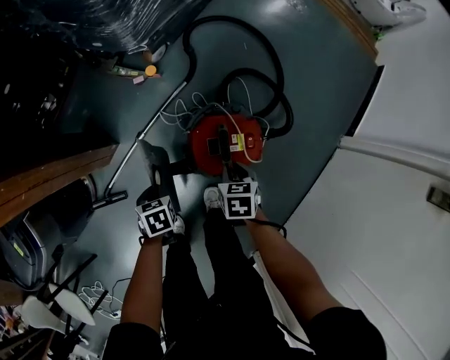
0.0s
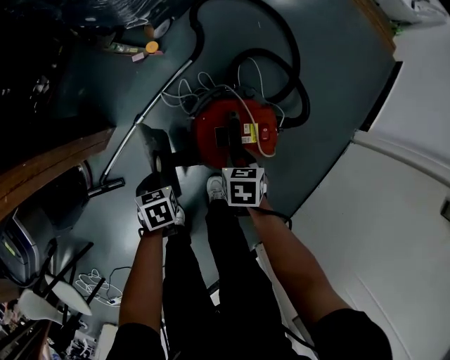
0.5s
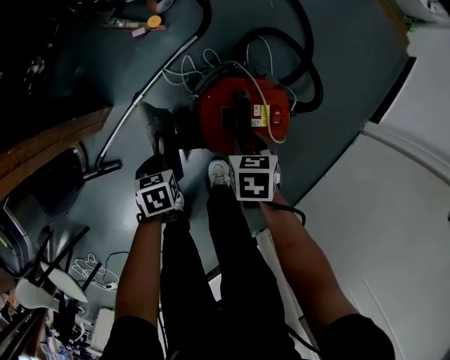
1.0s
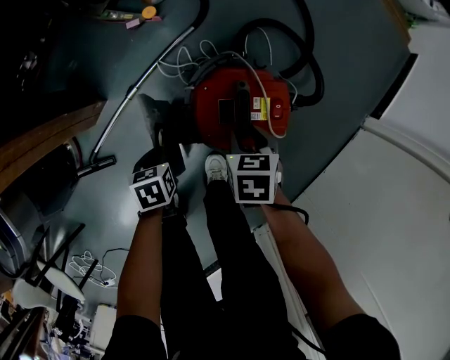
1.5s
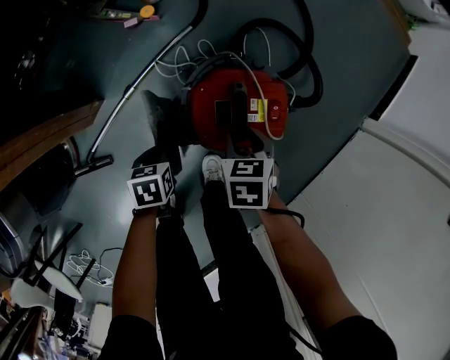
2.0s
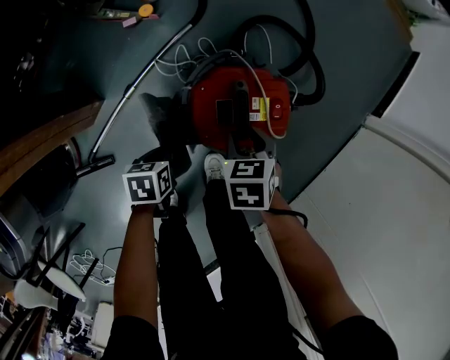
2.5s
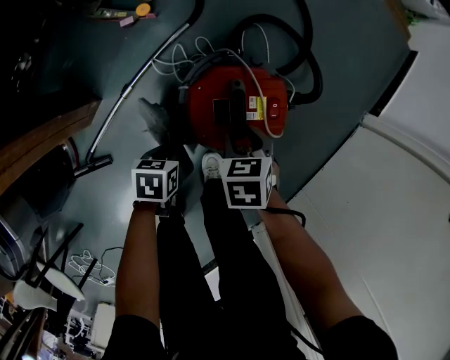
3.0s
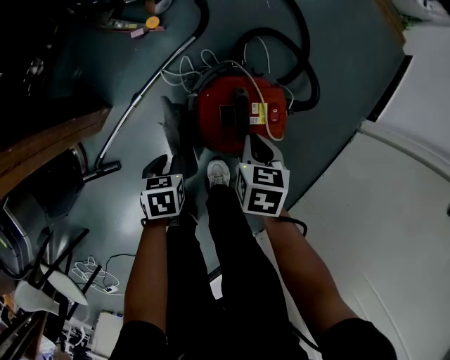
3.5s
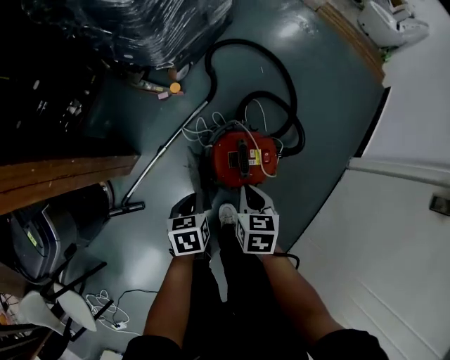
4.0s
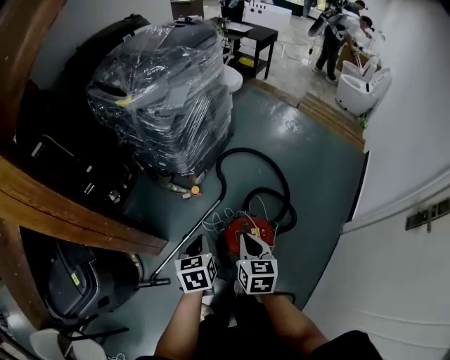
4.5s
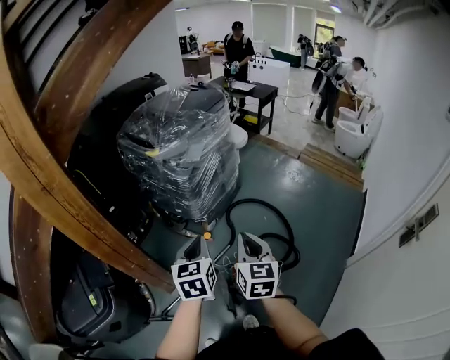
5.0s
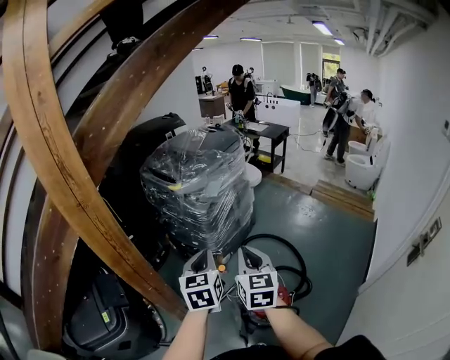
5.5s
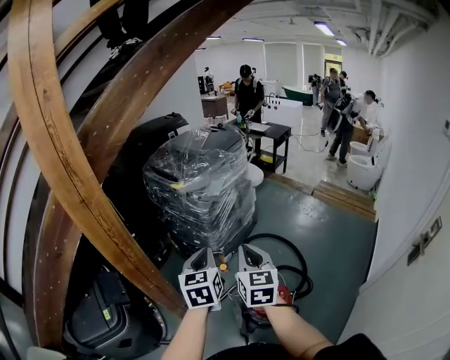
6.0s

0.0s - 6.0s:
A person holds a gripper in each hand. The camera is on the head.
0.0s - 2.0s: The left gripper goes roughly 10 cm downward; the right gripper is displaced downward by approximately 5 cm, and opens its fingers.
2.0s - 4.0s: The two grippers go some 20 cm upward. The left gripper opens, then closes once more. Meanwhile the right gripper closes.
4.0s - 6.0s: Both grippers travel together upward, approximately 50 cm. The right gripper tips its fingers upward by some 40 degrees. Meanwhile the left gripper tilts its fingers roughly 40 degrees upward.

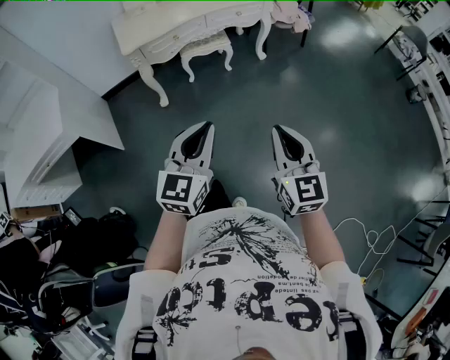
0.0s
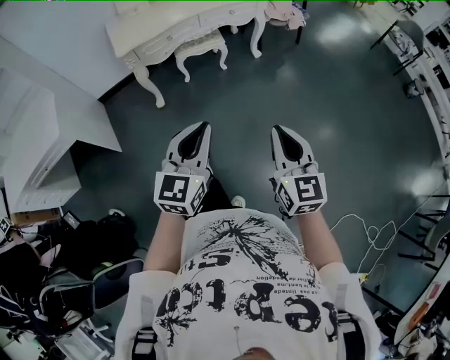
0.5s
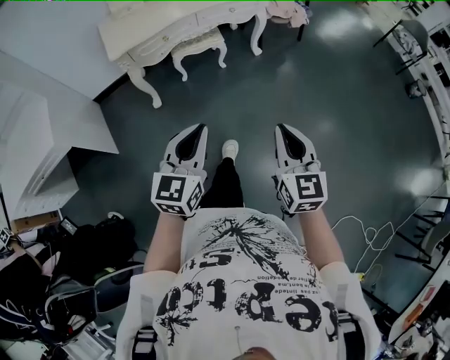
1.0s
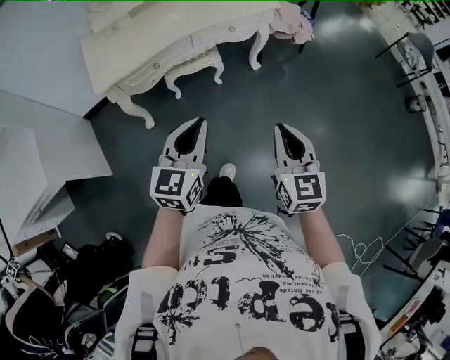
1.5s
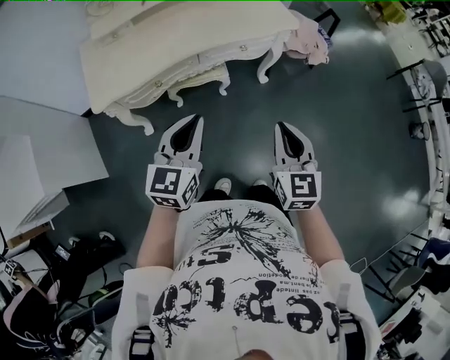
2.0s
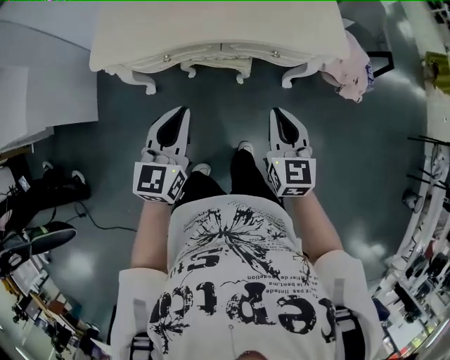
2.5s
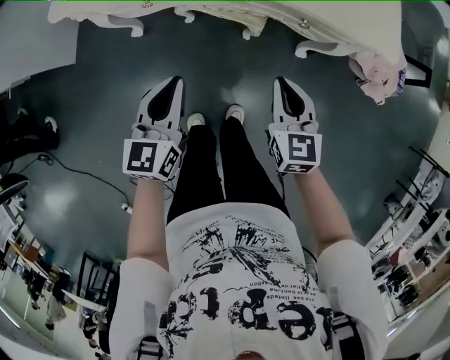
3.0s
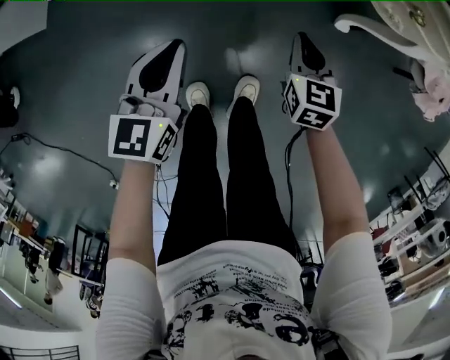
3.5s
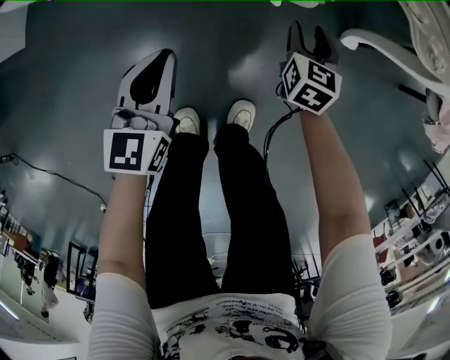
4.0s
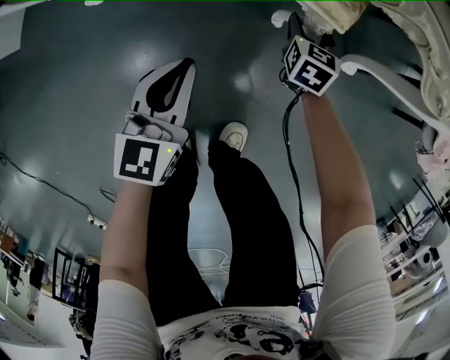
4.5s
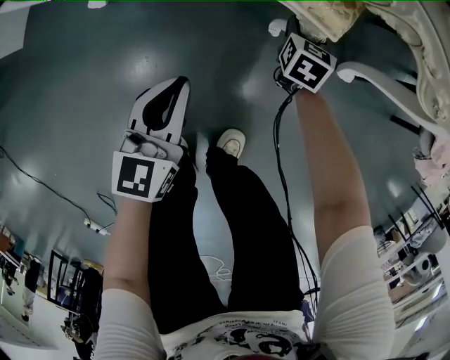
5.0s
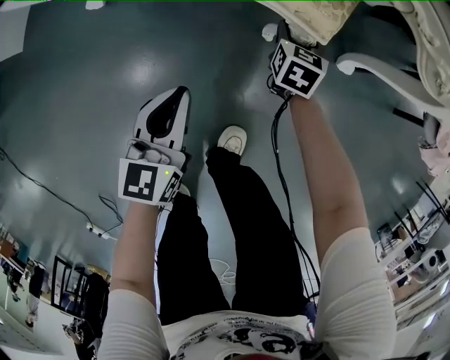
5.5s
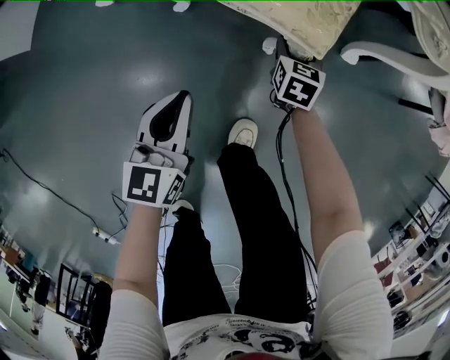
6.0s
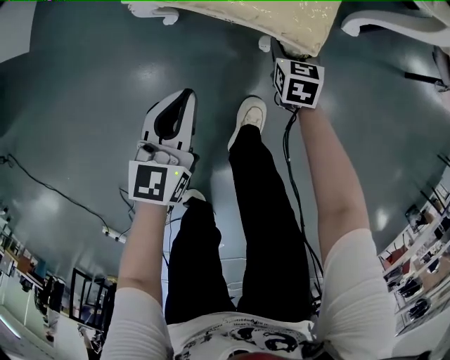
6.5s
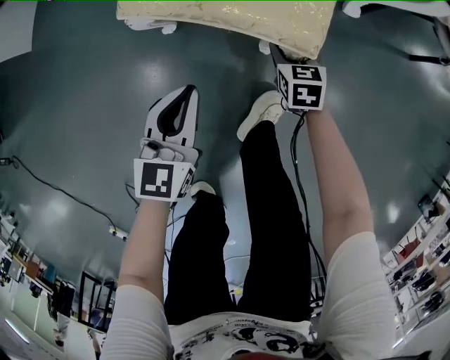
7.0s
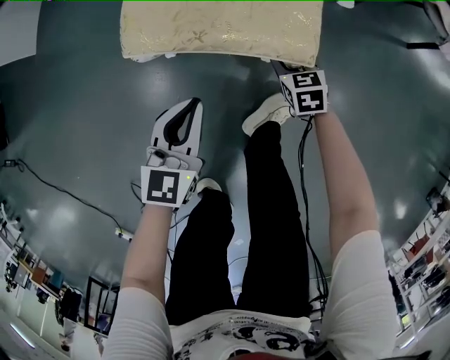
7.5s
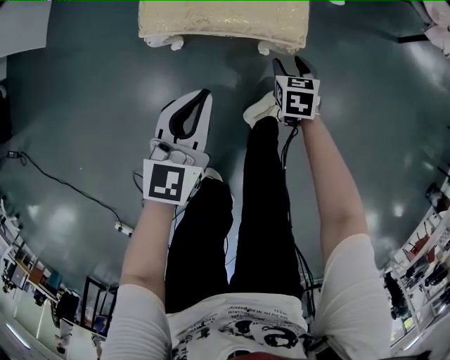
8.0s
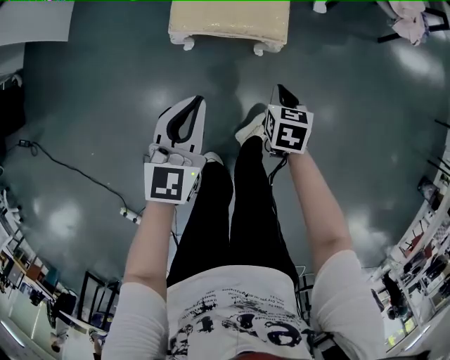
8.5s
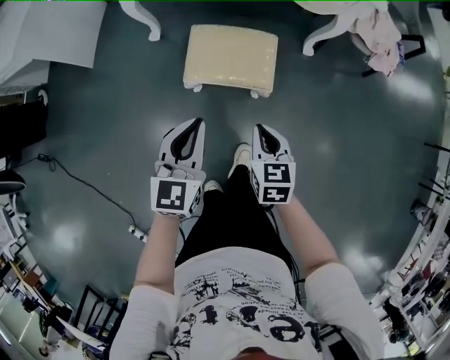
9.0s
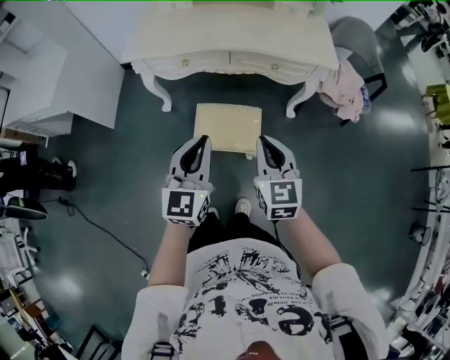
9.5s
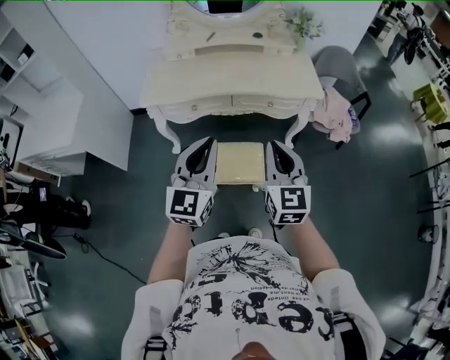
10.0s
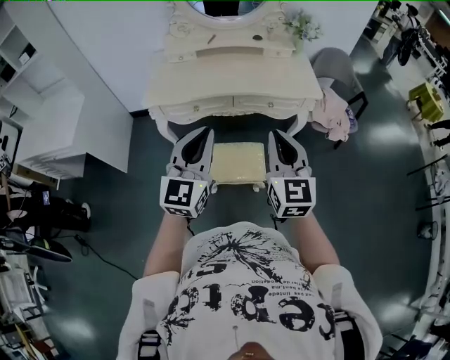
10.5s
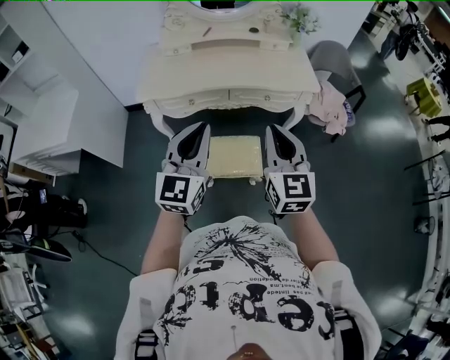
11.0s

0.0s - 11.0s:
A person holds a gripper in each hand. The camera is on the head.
0.0s - 2.0s: The pair of grippers is taken forward, roughly 40 cm.
2.0s - 3.5s: Both grippers travel together downward, roughly 50 cm. The right gripper changes its angle by approximately 40 degrees; the left gripper swivels approximately 40 degrees.
3.5s - 5.5s: The left gripper moves downward, roughly 15 cm. The right gripper moves downward and forward, roughly 25 cm, and opens its fingers.
5.5s - 7.5s: The grippers both shift backward by about 30 cm. The right gripper changes its angle by roughly 20 degrees.
7.5s - 9.0s: Both grippers travel together upward, approximately 40 cm. The right gripper closes.
9.0s - 11.0s: The grippers both shift upward by some 40 cm. The right gripper tilts its fingers roughly 40 degrees upward, while the left gripper changes its angle by approximately 20 degrees.

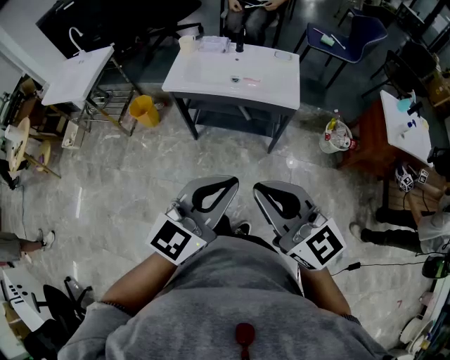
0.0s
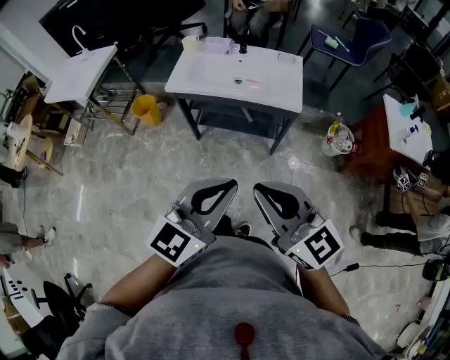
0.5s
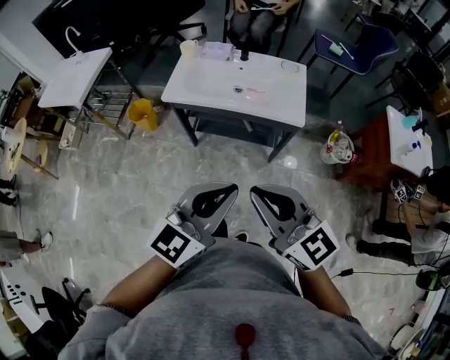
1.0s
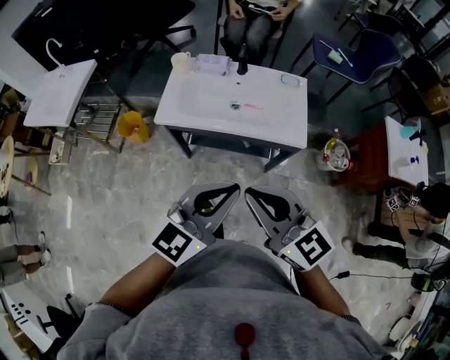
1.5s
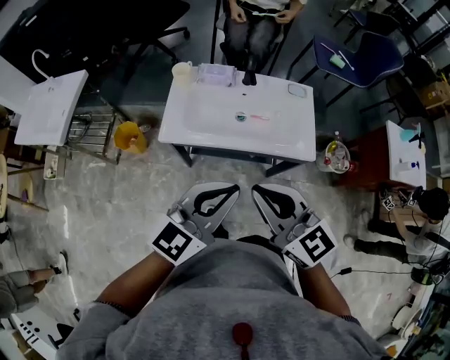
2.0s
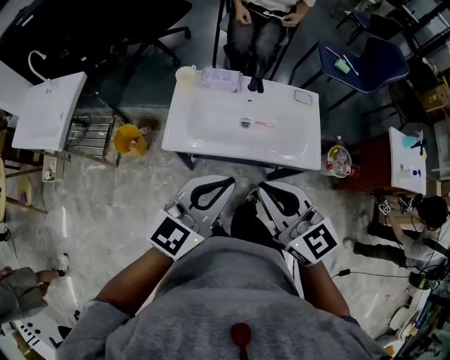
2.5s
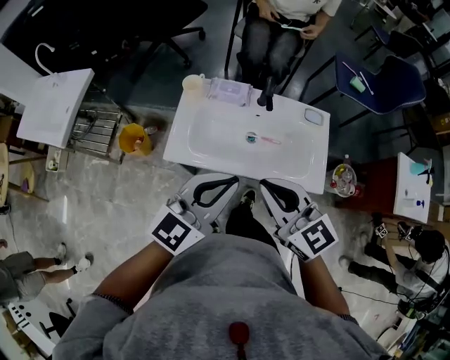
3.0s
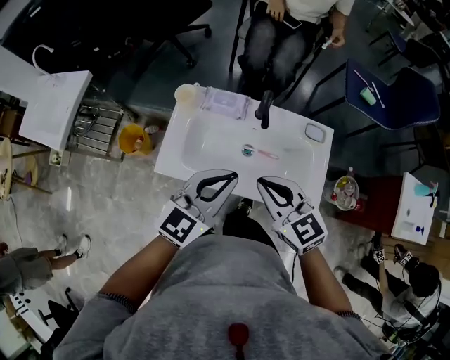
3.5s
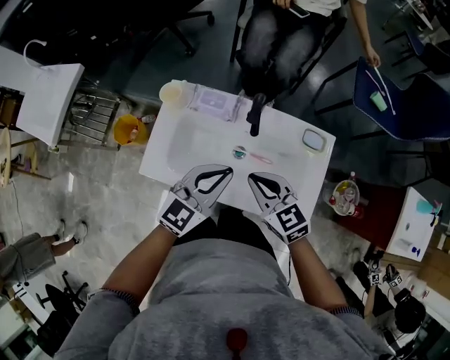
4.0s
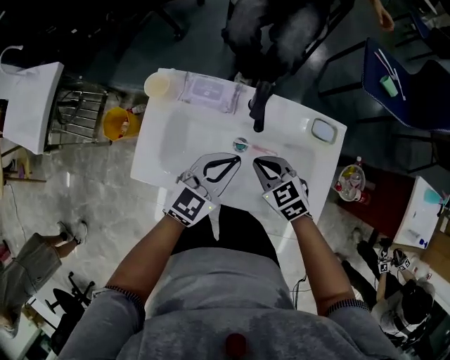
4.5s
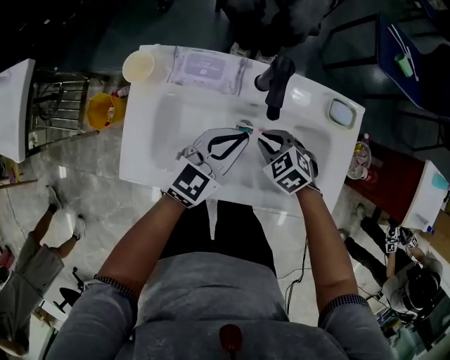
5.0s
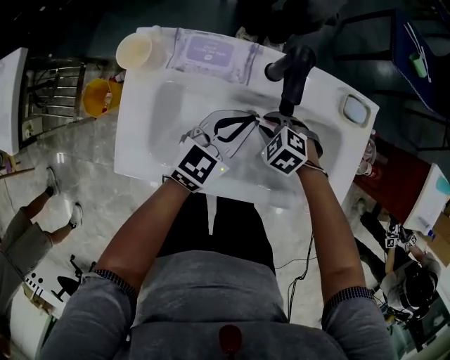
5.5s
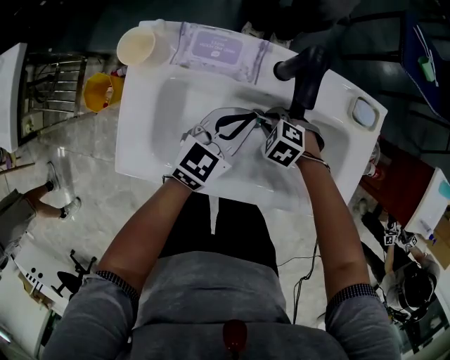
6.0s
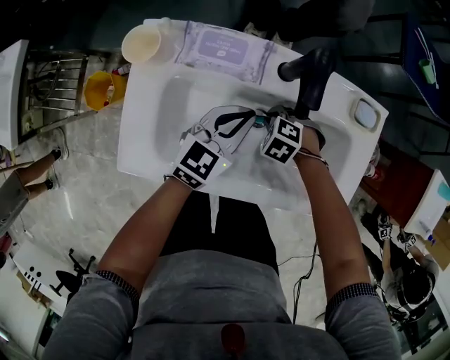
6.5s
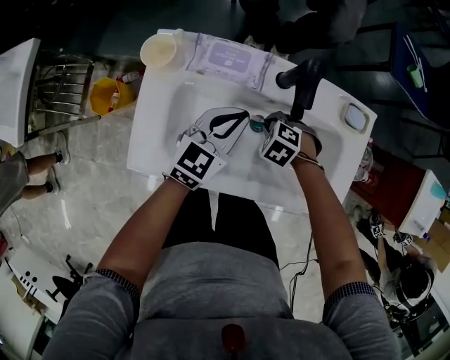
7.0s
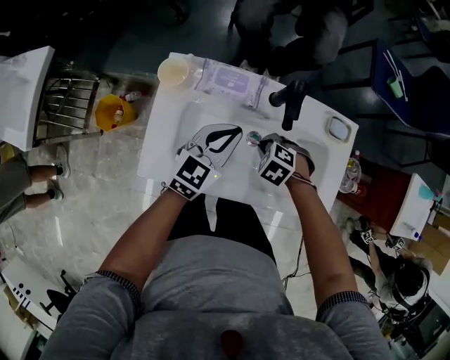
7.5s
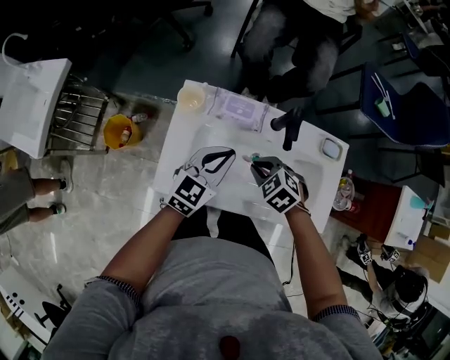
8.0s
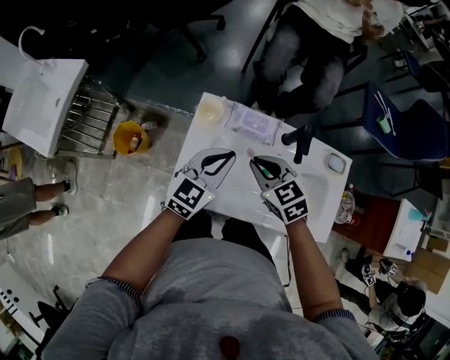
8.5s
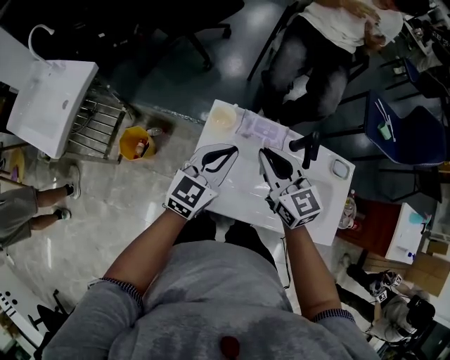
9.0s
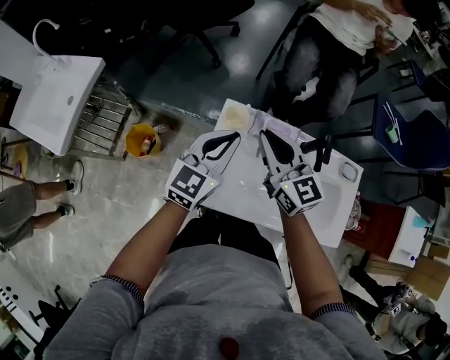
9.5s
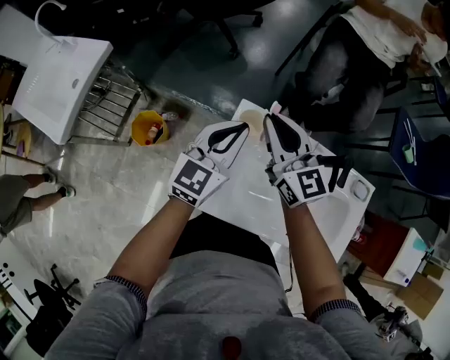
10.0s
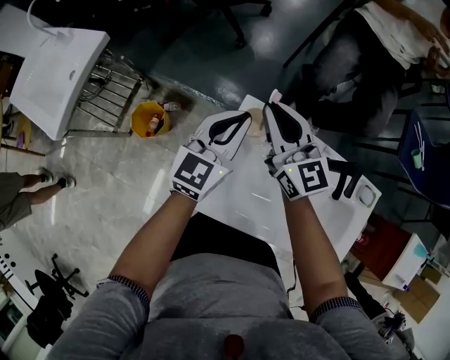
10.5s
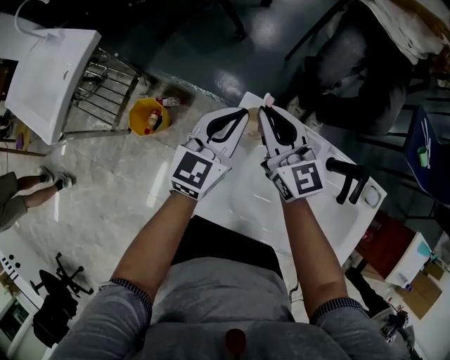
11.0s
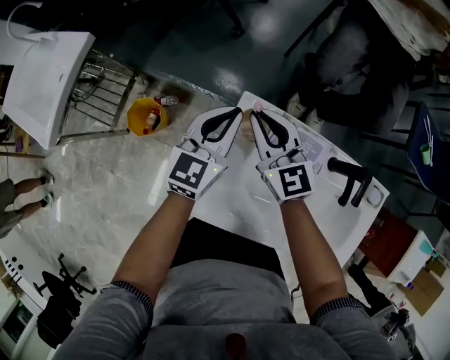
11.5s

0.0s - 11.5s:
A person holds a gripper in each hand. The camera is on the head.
0.0s - 2.0s: The two grippers go approximately 30 cm forward.
2.0s - 4.0s: The two grippers go some 35 cm forward and downward. The right gripper rotates about 20 degrees.
4.0s - 6.0s: The right gripper is displaced downward by approximately 35 cm, tilts its fingers about 50 degrees downward, and opens; the left gripper goes approximately 20 cm downward.
6.0s - 7.5s: Both grippers travel together upward, some 10 cm.
7.5s - 9.5s: The left gripper moves approximately 25 cm. Meanwhile the right gripper moves upward, approximately 30 cm, and angles its fingers upward, by approximately 70 degrees.
9.5s - 11.5s: The left gripper moves forward and downward, about 15 cm; the right gripper heads downward, forward and to the left, covering roughly 20 cm.
